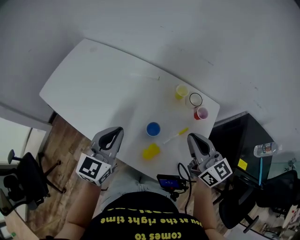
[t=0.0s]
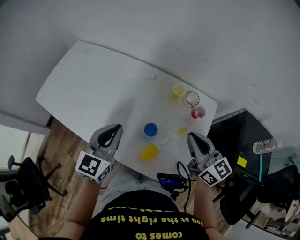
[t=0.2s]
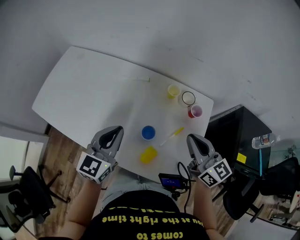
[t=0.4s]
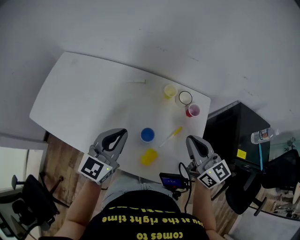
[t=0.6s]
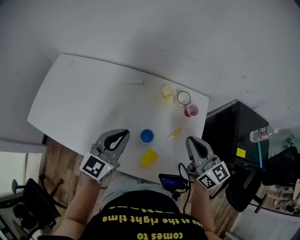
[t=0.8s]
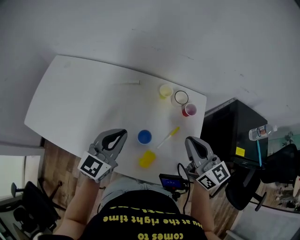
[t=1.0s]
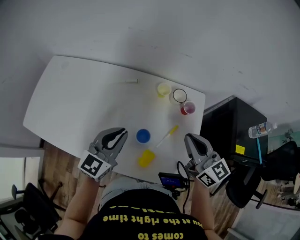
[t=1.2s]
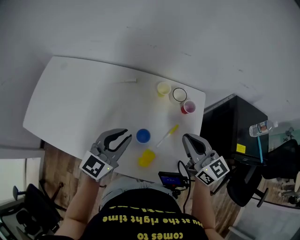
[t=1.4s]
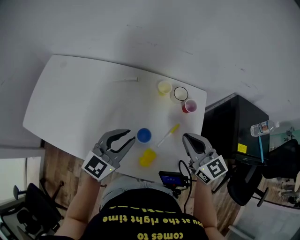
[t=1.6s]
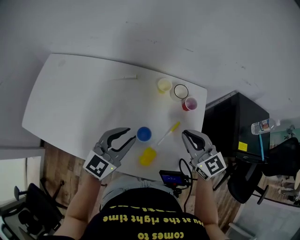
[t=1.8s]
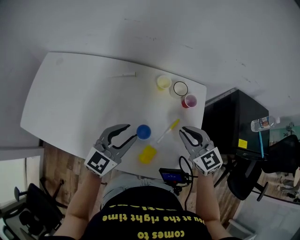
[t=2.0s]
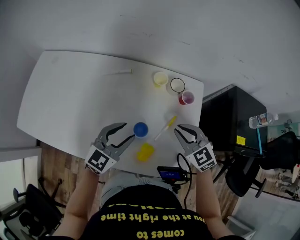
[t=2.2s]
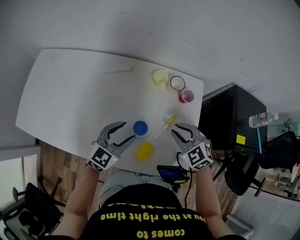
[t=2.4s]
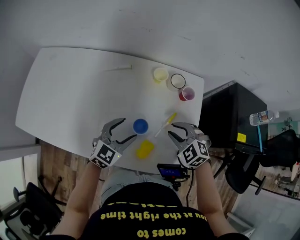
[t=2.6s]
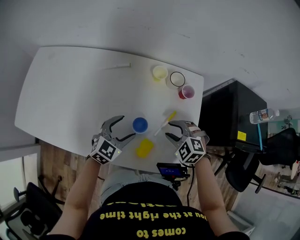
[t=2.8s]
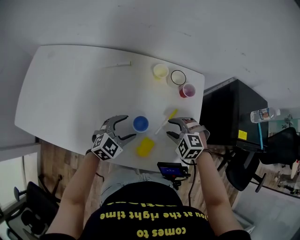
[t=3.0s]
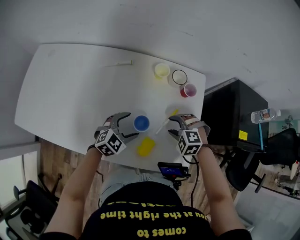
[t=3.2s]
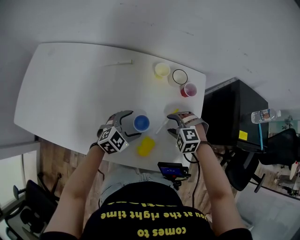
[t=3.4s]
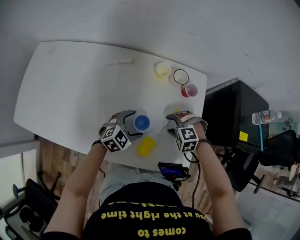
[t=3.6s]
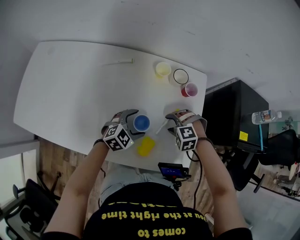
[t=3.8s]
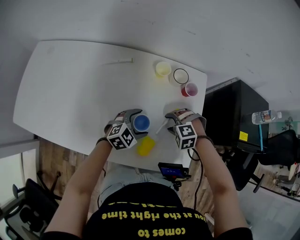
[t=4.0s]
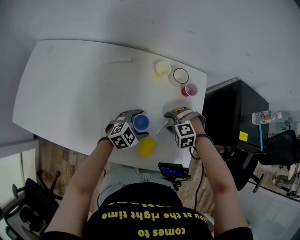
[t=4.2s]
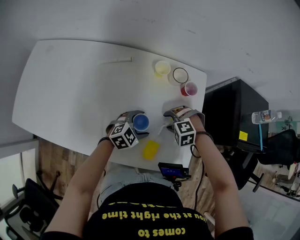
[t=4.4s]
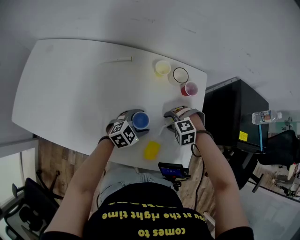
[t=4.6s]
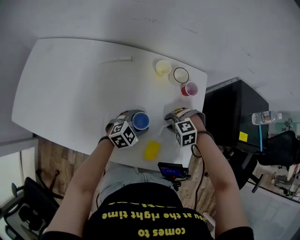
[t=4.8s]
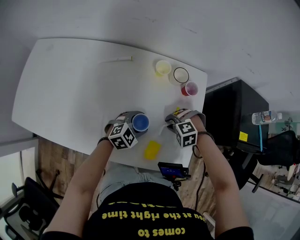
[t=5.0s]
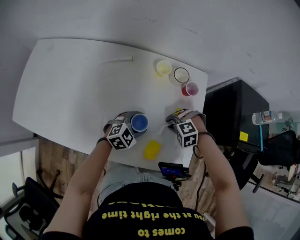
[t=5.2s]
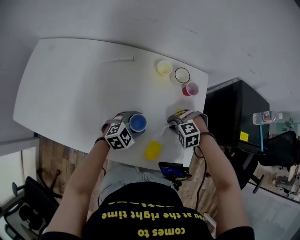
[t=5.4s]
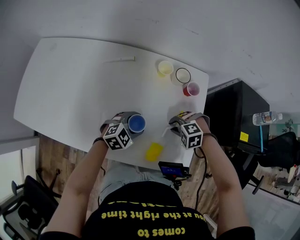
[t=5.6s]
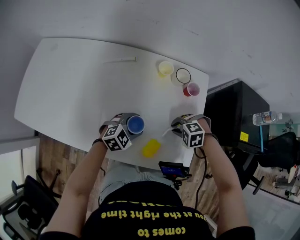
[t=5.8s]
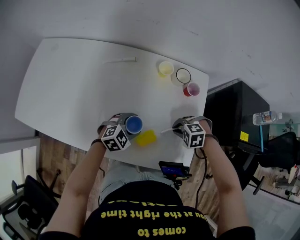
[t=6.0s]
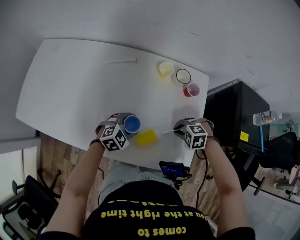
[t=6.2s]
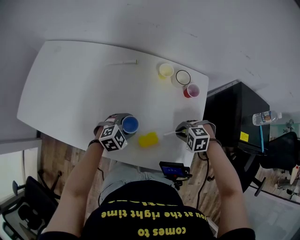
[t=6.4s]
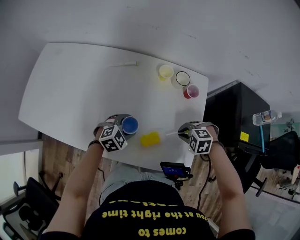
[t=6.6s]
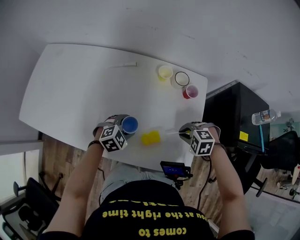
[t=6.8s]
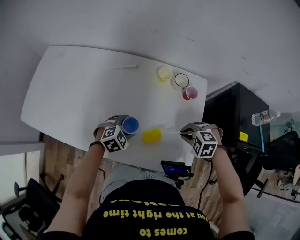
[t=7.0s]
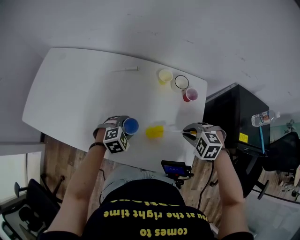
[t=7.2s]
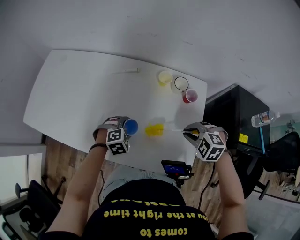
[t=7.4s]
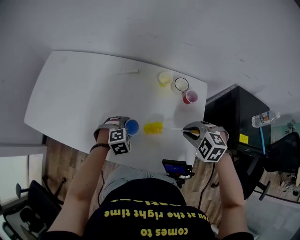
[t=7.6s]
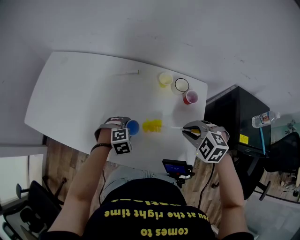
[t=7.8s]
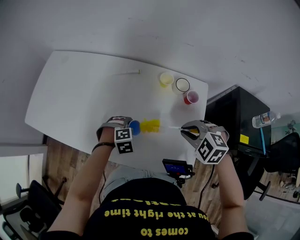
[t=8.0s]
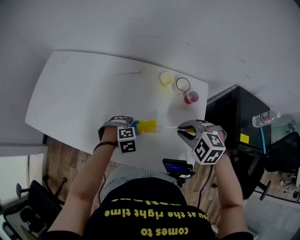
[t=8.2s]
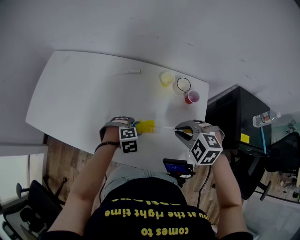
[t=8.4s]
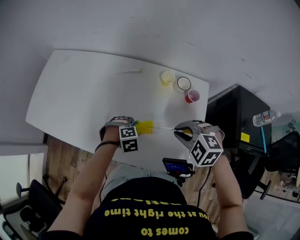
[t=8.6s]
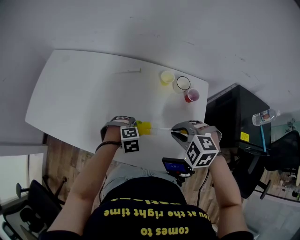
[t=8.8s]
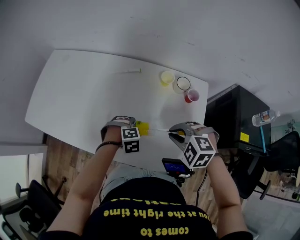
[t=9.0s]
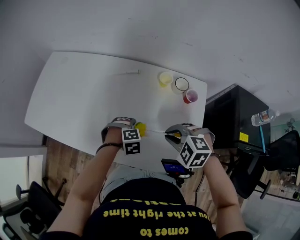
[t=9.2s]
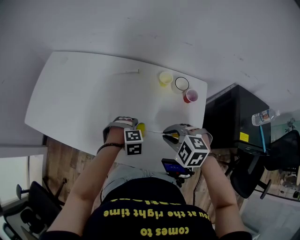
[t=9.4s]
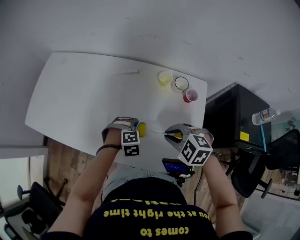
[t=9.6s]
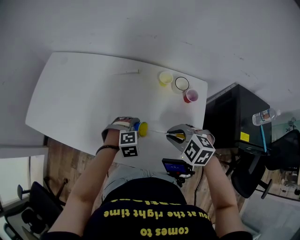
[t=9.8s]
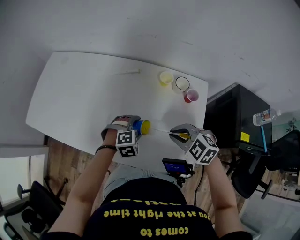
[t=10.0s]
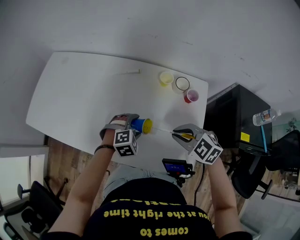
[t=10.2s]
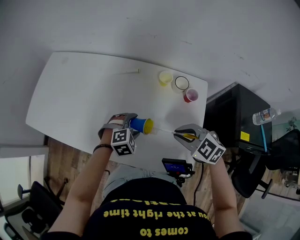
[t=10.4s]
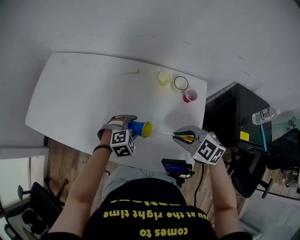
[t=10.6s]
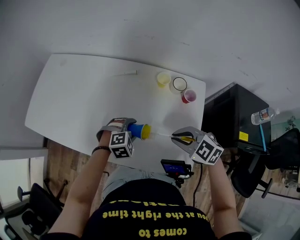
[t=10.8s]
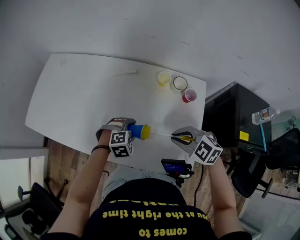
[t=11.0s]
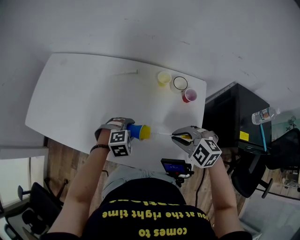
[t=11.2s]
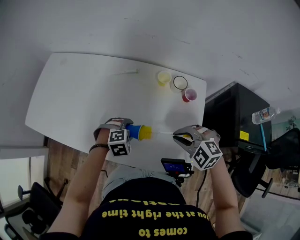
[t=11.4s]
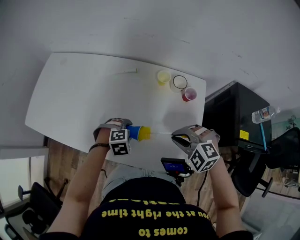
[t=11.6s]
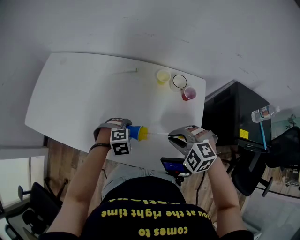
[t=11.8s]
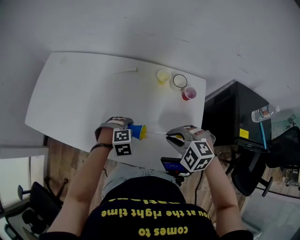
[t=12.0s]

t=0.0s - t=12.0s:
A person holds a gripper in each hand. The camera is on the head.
t=0.0s - t=1.6s: The left gripper heads to the right and forward, covering roughly 10 cm, and turns by about 30 degrees. Meanwhile the right gripper ends up roughly 5 cm from where it was.
t=1.6s - t=3.0s: Both grippers travel together downward, roughly 20 cm. The left gripper swivels about 30 degrees, and opens; the right gripper tips its fingers downward by about 50 degrees, and opens up.
t=3.0s - t=4.4s: The left gripper ends up about 10 cm from where it was. The right gripper shifts roughly 5 cm downward, and rotates roughly 20 degrees.
t=4.4s - t=6.0s: The left gripper ends up approximately 5 cm from where it was. The right gripper ends up roughly 5 cm from where it was, and closes.
t=6.0s - t=7.6s: The left gripper shifts by roughly 5 cm, and turns by roughly 30 degrees; the right gripper moves upward, approximately 15 cm, and turns by about 20 degrees.
t=7.6s - t=9.0s: The right gripper changes place by some 10 cm.
t=9.0s - t=10.4s: The right gripper turns by approximately 30 degrees; the left gripper changes its angle by about 20 degrees.
t=10.4s - t=12.0s: The right gripper swivels about 20 degrees.

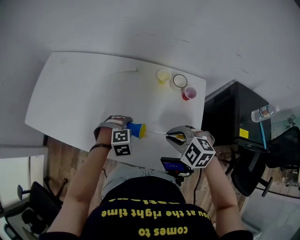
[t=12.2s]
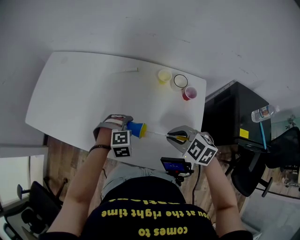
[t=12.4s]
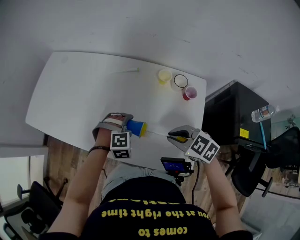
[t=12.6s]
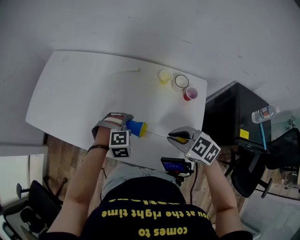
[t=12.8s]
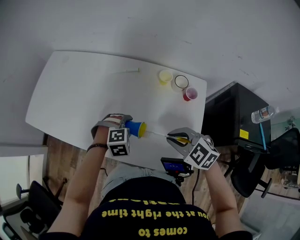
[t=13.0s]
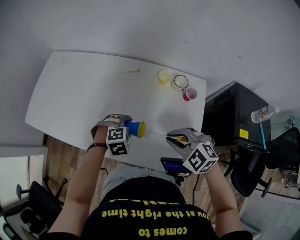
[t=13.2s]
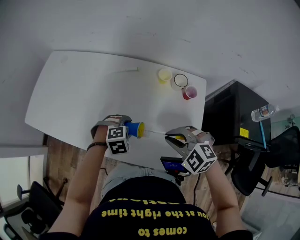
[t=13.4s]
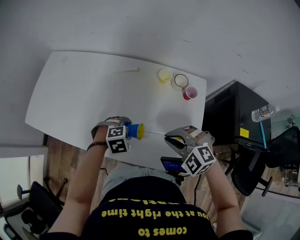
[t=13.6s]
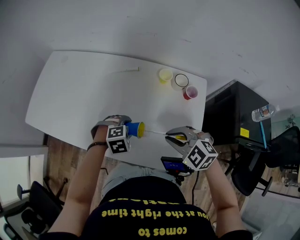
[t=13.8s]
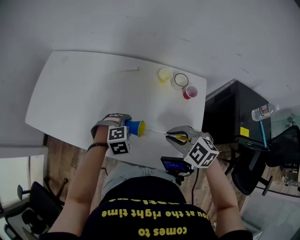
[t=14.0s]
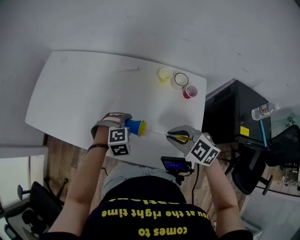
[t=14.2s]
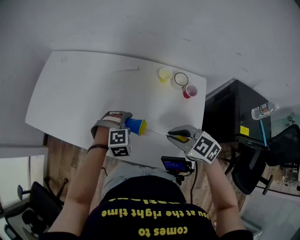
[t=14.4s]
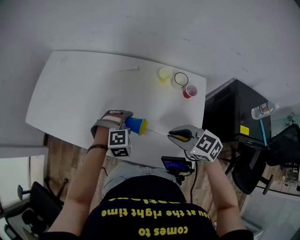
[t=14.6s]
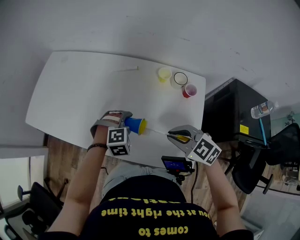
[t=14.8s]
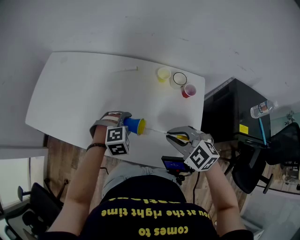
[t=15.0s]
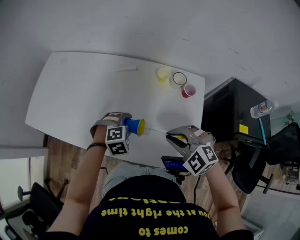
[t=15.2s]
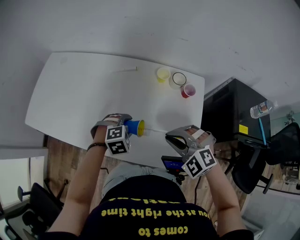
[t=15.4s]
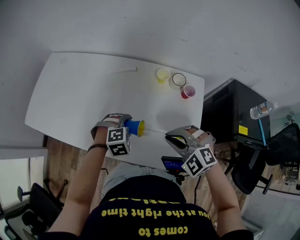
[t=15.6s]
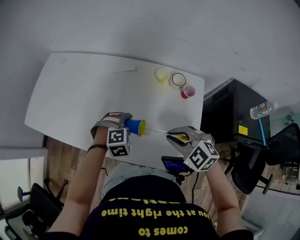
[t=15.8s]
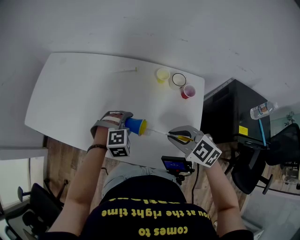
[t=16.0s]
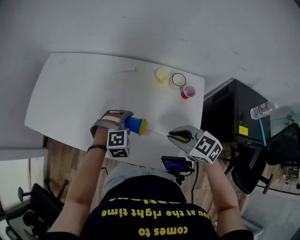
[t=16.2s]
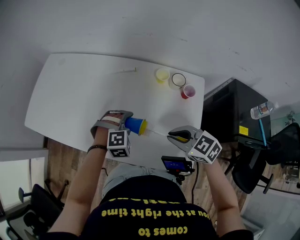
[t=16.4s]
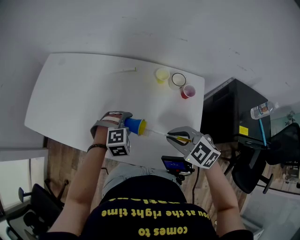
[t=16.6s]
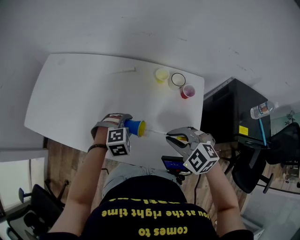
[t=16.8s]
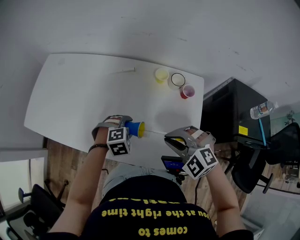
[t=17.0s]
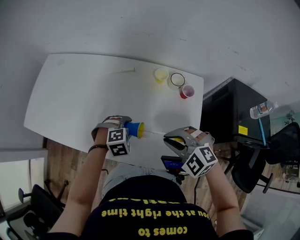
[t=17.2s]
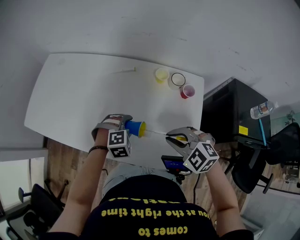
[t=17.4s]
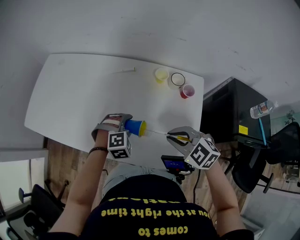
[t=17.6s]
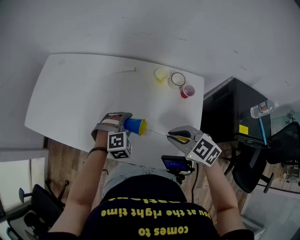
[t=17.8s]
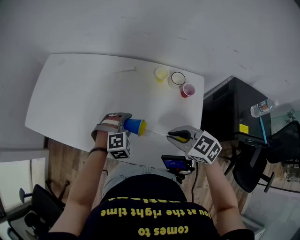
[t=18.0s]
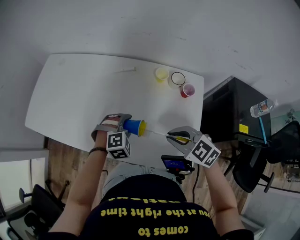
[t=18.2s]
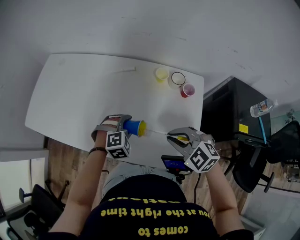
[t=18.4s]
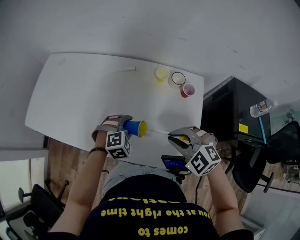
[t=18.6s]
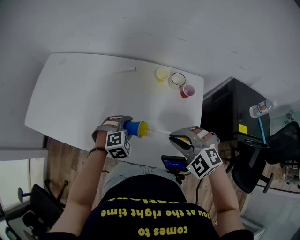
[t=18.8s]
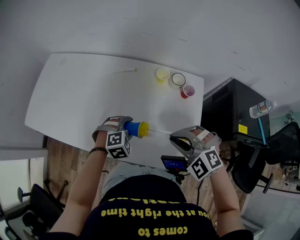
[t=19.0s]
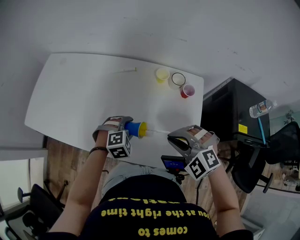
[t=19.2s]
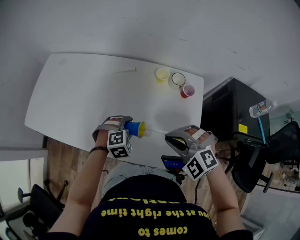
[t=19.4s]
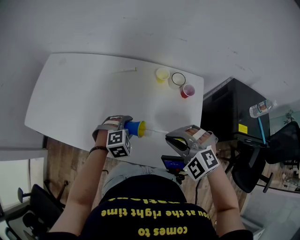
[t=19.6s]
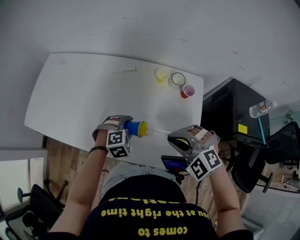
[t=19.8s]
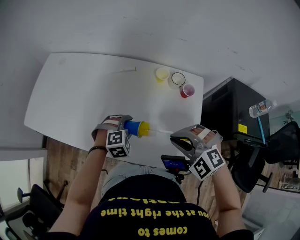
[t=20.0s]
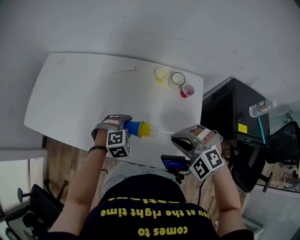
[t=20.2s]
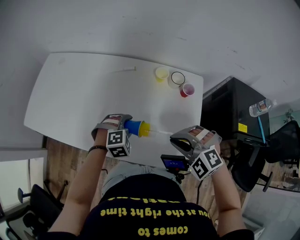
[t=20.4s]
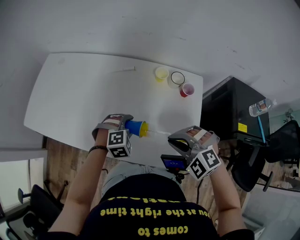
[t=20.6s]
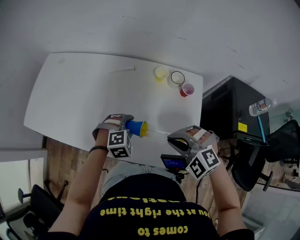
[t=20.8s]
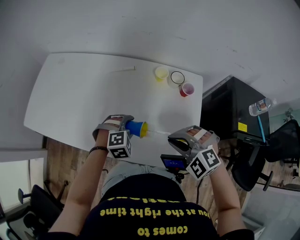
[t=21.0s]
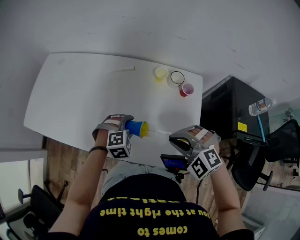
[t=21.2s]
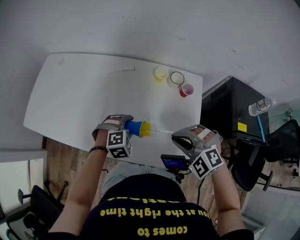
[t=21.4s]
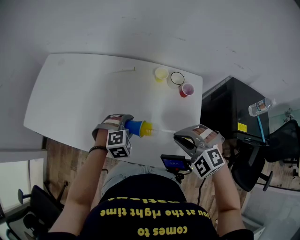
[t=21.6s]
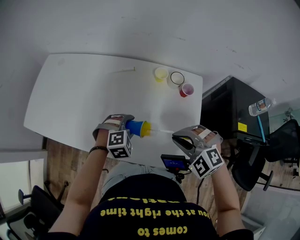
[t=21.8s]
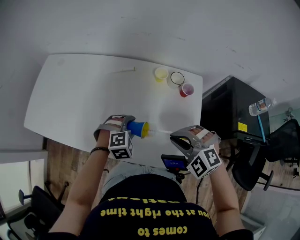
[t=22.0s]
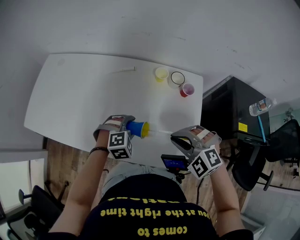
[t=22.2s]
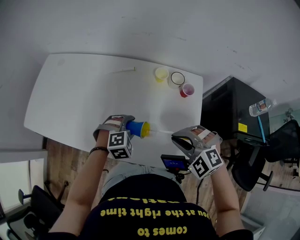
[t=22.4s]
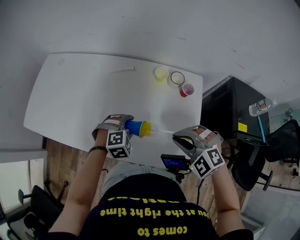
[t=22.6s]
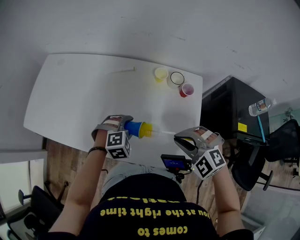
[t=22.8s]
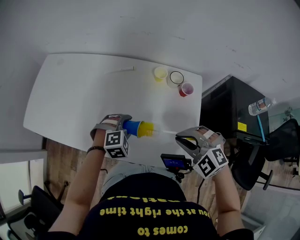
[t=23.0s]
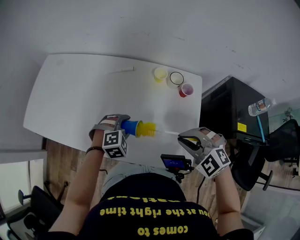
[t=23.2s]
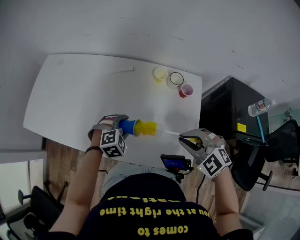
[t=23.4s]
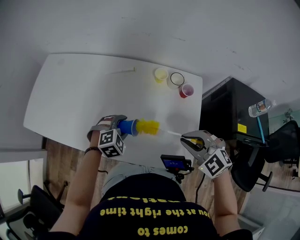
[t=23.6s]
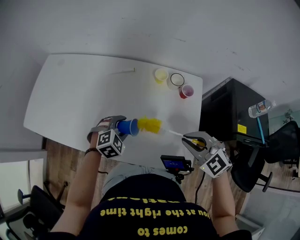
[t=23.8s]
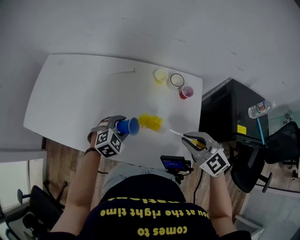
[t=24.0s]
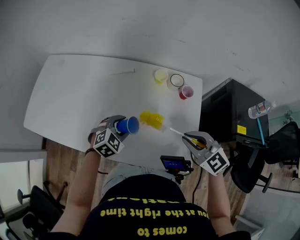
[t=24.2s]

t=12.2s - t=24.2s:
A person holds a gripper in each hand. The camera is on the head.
t=15.2s - t=16.6s: The right gripper turns by some 20 degrees.
t=18.2s - t=19.8s: The right gripper changes its angle by roughly 40 degrees.
t=19.8s - t=22.6s: The grippers stay close to where they were, moving slightly.
t=22.6s - t=24.2s: The left gripper changes its angle by roughly 20 degrees. Meanwhile the right gripper rotates approximately 30 degrees.
